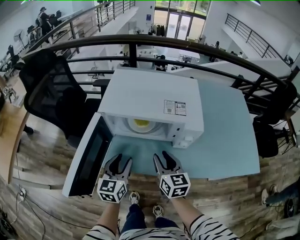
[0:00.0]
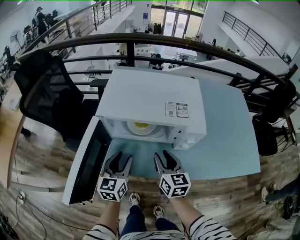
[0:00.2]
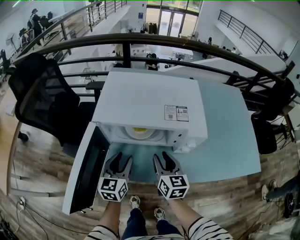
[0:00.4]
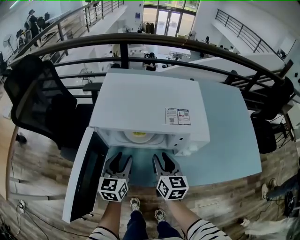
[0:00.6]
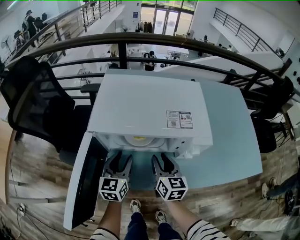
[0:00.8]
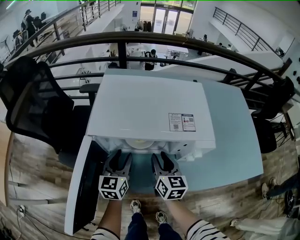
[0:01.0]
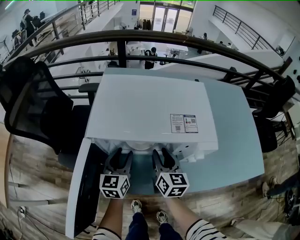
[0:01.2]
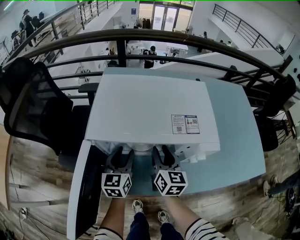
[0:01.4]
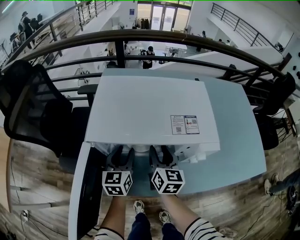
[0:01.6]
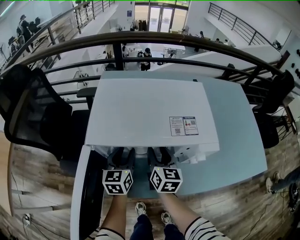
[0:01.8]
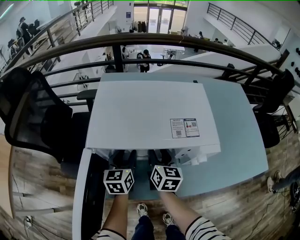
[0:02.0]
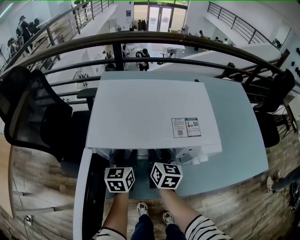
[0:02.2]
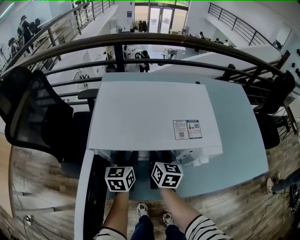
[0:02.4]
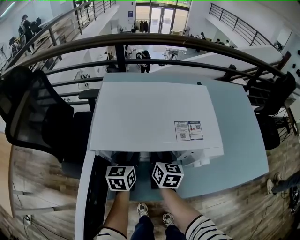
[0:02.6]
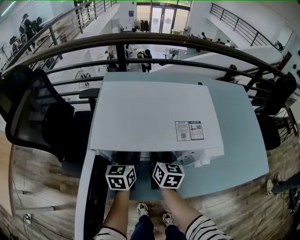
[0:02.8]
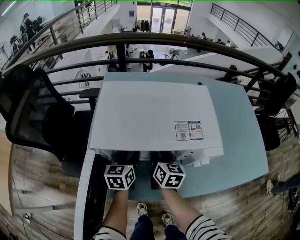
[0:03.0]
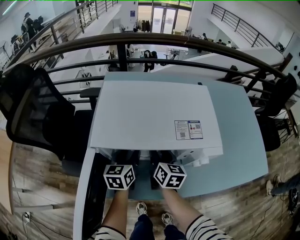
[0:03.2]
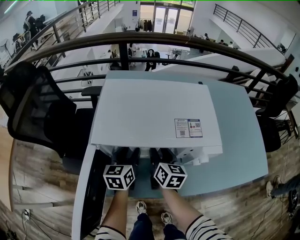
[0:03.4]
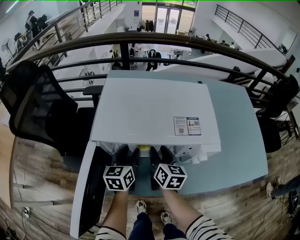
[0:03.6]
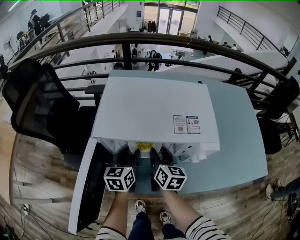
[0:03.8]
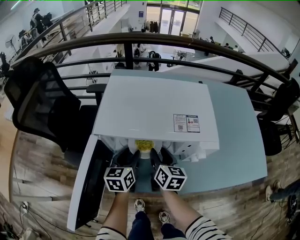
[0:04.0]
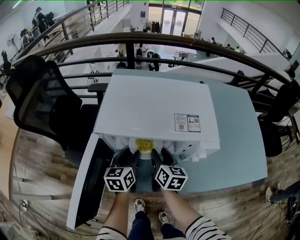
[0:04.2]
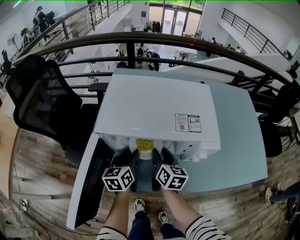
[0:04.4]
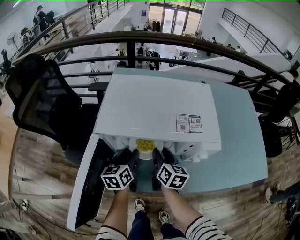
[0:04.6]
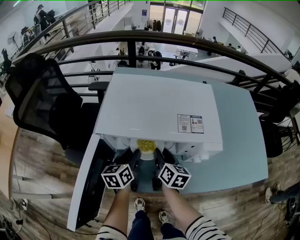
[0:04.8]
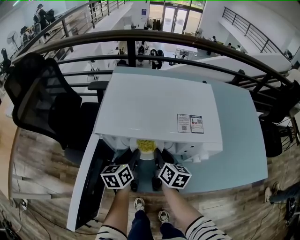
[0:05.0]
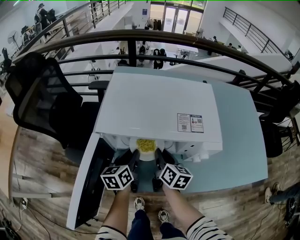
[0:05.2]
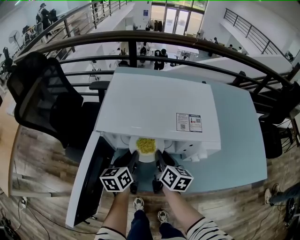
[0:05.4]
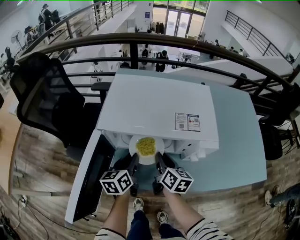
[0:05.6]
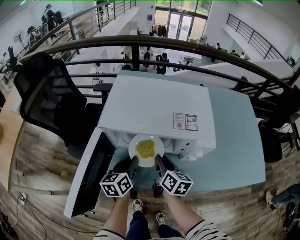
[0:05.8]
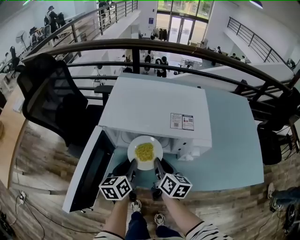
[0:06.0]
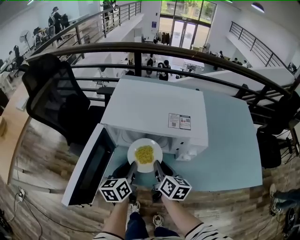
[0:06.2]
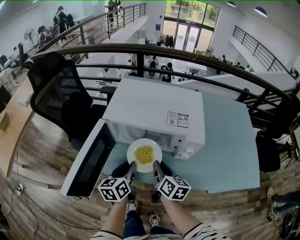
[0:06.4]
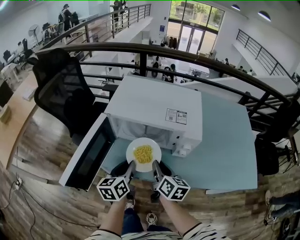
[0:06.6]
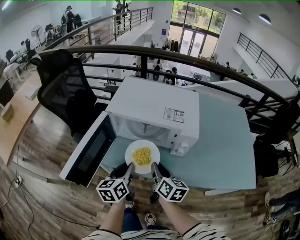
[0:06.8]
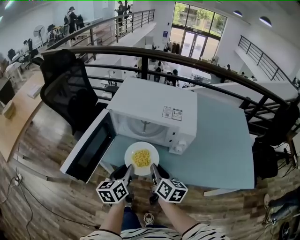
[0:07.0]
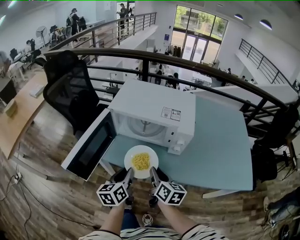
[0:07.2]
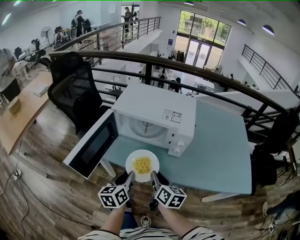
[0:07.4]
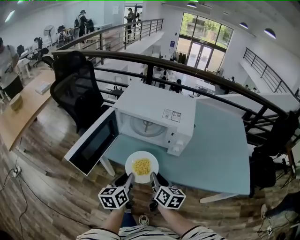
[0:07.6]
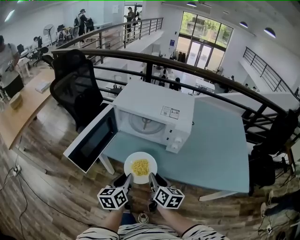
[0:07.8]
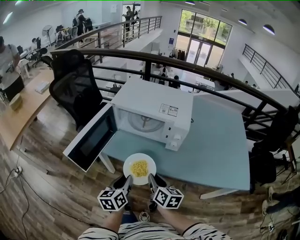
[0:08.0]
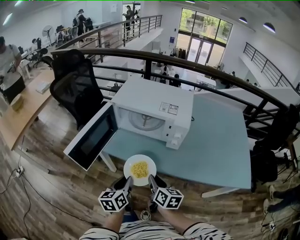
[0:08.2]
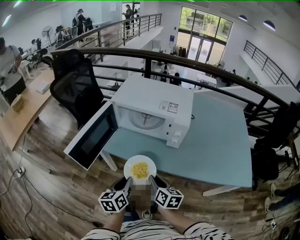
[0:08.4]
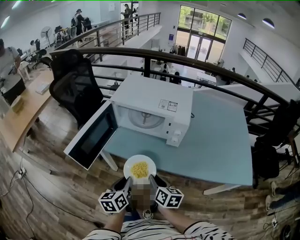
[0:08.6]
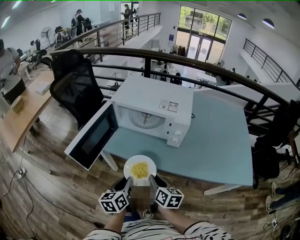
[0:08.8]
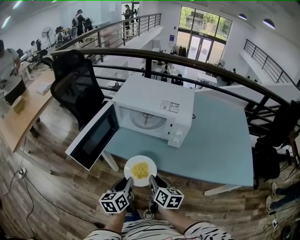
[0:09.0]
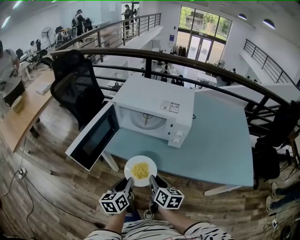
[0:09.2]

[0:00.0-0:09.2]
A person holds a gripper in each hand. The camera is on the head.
0:00.0 to 0:01.6: The two grippers go some 15 cm forward.
0:01.6 to 0:03.0: The grippers make only small movements.
0:03.0 to 0:04.6: The left gripper moves backward, some 5 cm.
0:04.6 to 0:06.2: The grippers both shift backward by about 10 cm. The right gripper closes up.
0:06.2 to 0:07.6: The grippers both shift backward by approximately 15 cm.
0:07.6 to 0:09.2: The left gripper moves backward, some 5 cm. The right gripper shifts by approximately 5 cm.

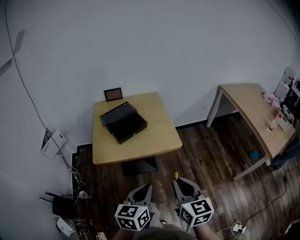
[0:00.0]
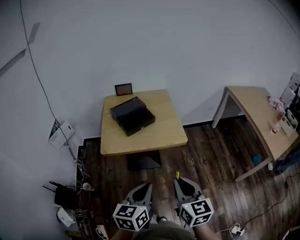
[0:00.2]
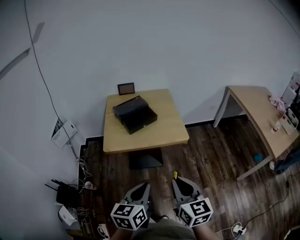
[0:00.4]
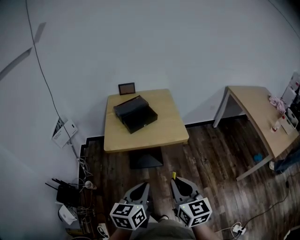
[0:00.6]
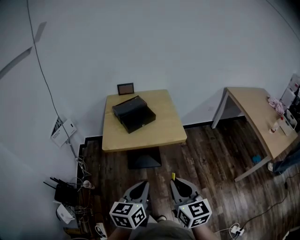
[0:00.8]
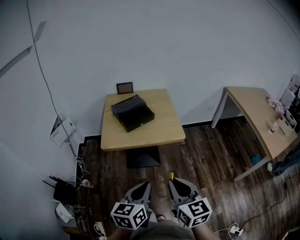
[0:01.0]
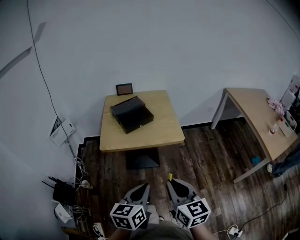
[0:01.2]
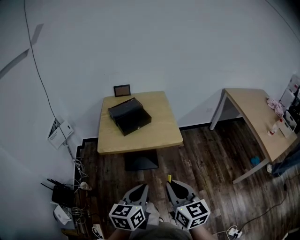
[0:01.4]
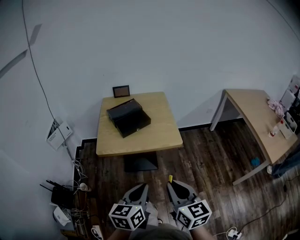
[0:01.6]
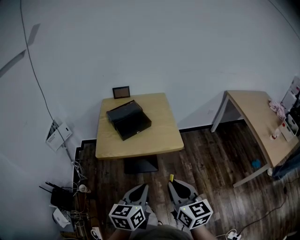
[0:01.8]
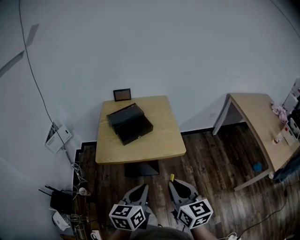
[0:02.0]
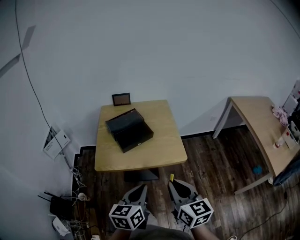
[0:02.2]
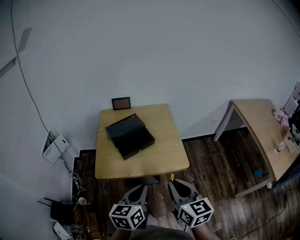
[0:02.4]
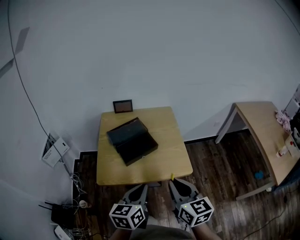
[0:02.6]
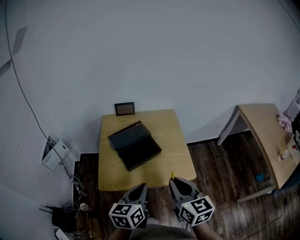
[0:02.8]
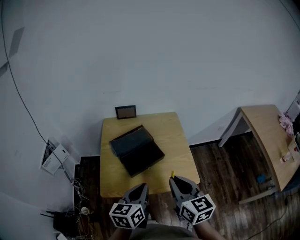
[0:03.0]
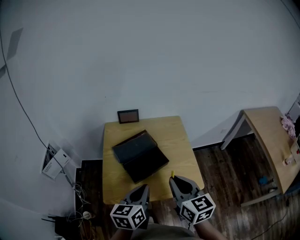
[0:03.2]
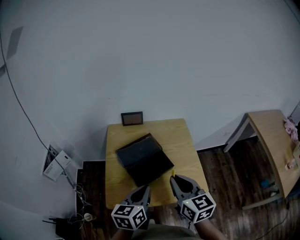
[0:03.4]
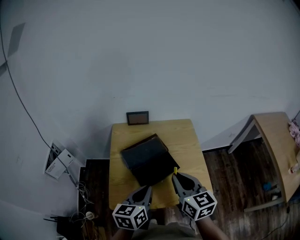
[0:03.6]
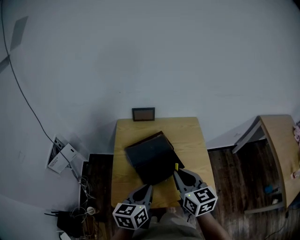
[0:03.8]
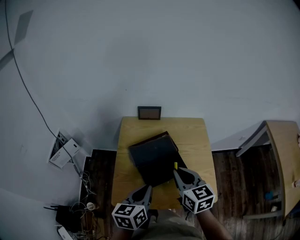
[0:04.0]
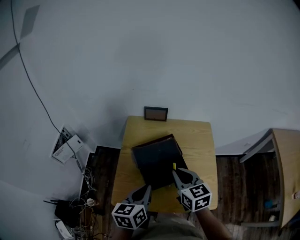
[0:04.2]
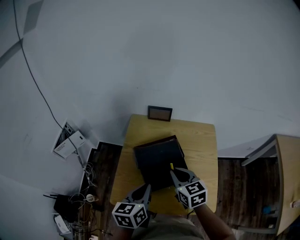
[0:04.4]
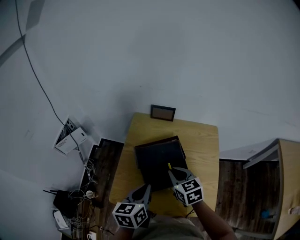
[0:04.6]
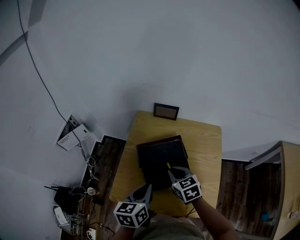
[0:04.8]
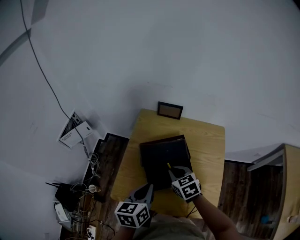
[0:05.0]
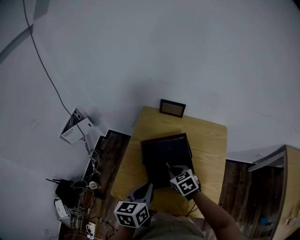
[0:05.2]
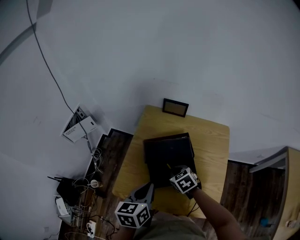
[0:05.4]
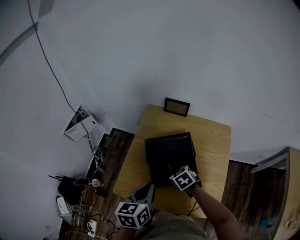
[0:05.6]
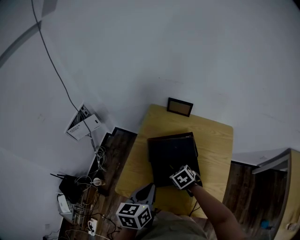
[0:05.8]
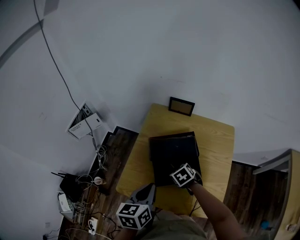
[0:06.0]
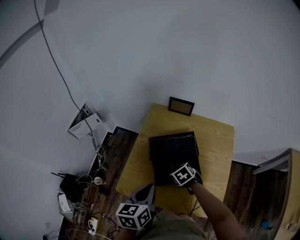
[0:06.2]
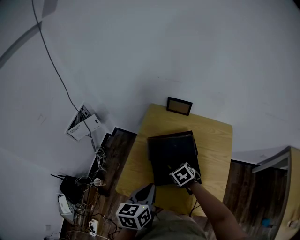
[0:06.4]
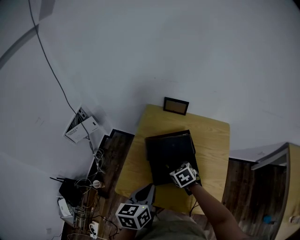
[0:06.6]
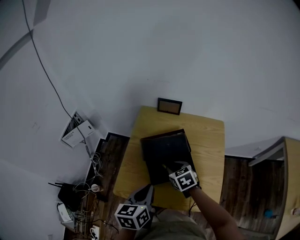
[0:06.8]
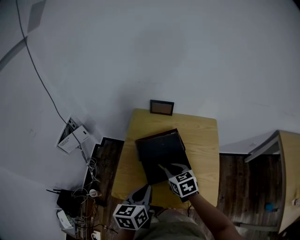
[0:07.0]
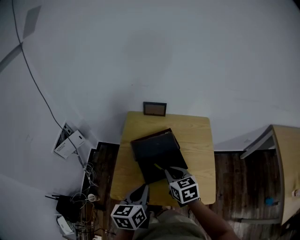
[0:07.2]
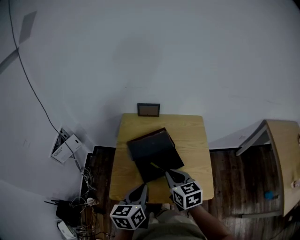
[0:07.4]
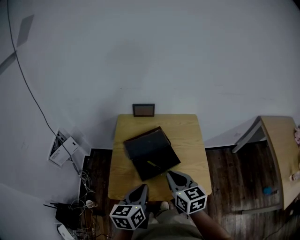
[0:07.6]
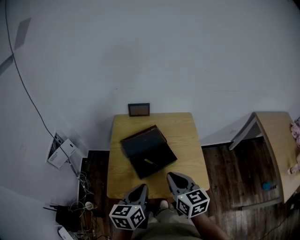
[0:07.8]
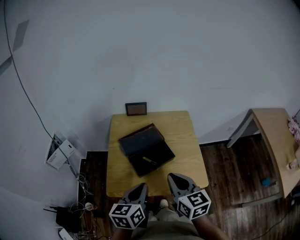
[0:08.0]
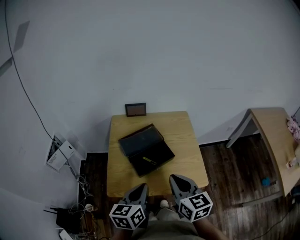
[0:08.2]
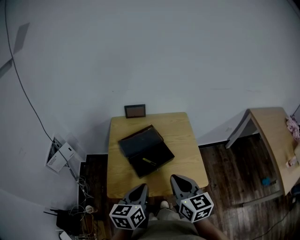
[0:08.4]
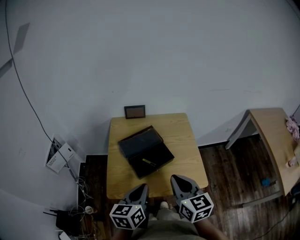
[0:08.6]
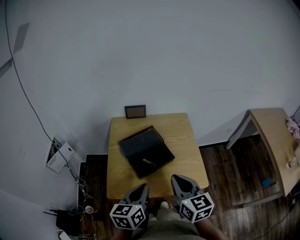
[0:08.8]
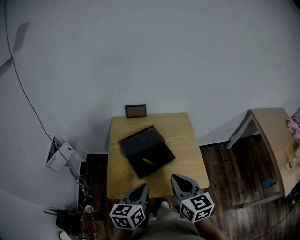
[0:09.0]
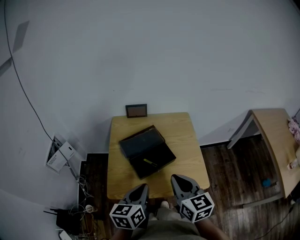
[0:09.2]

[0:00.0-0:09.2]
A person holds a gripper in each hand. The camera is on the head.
0:00.0 to 0:01.6: The right gripper goes roughly 5 cm backward.
0:01.6 to 0:03.0: Both grippers move forward, about 30 cm.
0:03.0 to 0:04.6: The left gripper goes some 15 cm forward and to the left, and changes its angle by about 20 degrees, while the right gripper shifts roughly 25 cm forward, downward and to the left, and rotates approximately 30 degrees.
0:04.6 to 0:06.2: The right gripper travels downward by some 15 cm, and tips its fingers downward by some 30 degrees.
0:06.2 to 0:07.6: The left gripper changes place by some 5 cm. The right gripper travels upward by roughly 20 cm, tips its fingers upward by some 40 degrees, and opens, then closes once more.
0:07.6 to 0:09.2: The right gripper is displaced backward by roughly 5 cm.

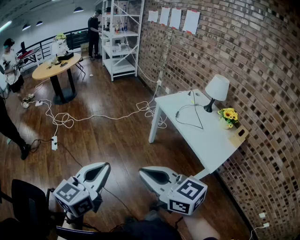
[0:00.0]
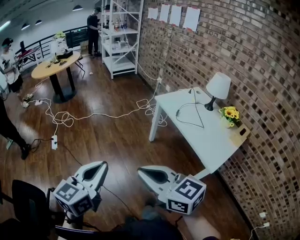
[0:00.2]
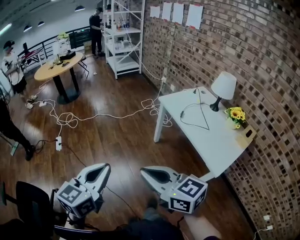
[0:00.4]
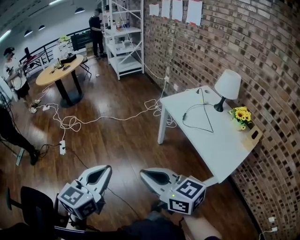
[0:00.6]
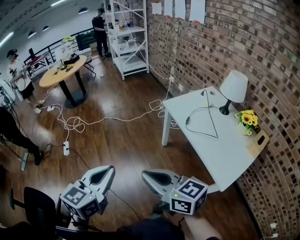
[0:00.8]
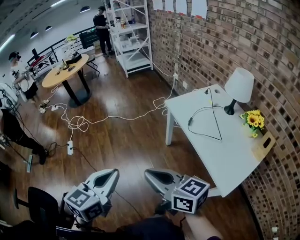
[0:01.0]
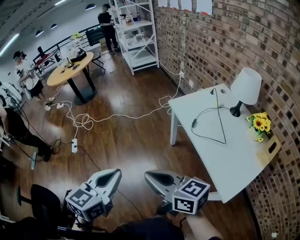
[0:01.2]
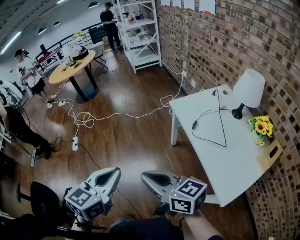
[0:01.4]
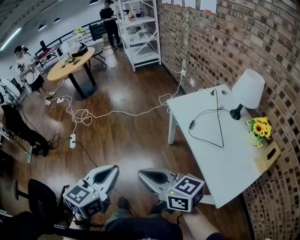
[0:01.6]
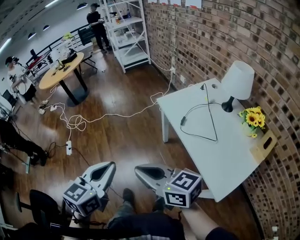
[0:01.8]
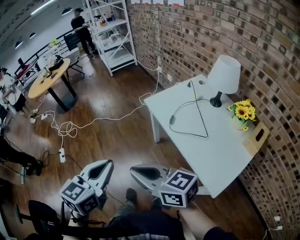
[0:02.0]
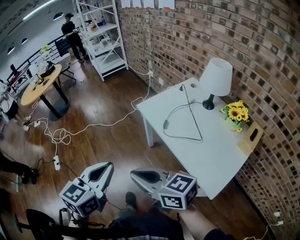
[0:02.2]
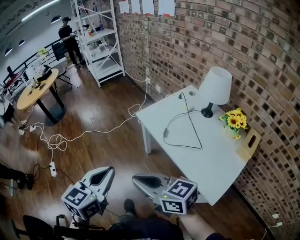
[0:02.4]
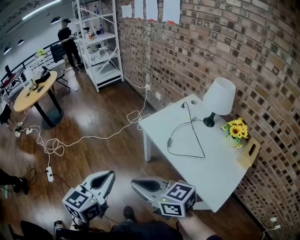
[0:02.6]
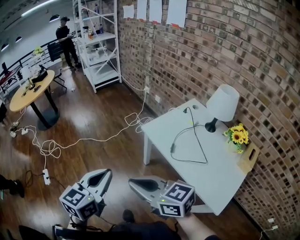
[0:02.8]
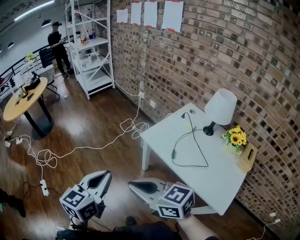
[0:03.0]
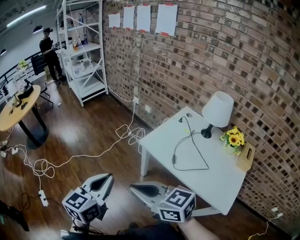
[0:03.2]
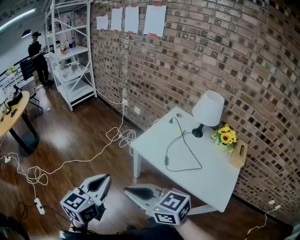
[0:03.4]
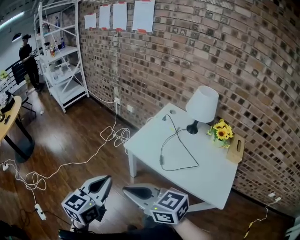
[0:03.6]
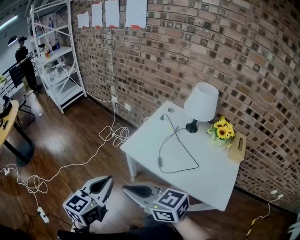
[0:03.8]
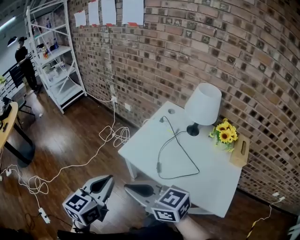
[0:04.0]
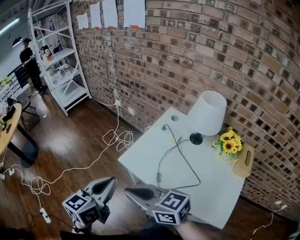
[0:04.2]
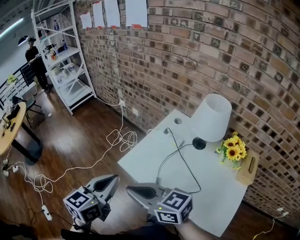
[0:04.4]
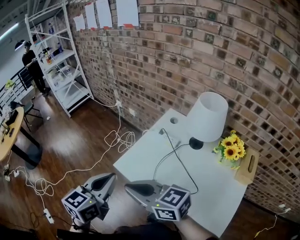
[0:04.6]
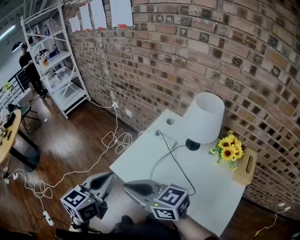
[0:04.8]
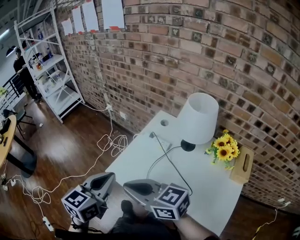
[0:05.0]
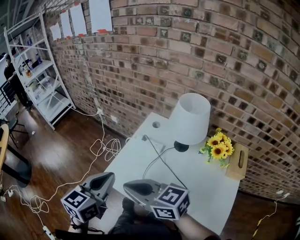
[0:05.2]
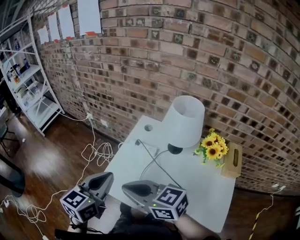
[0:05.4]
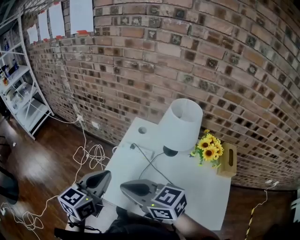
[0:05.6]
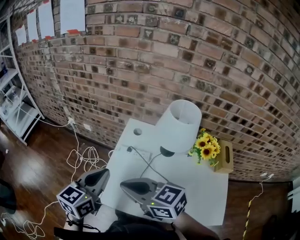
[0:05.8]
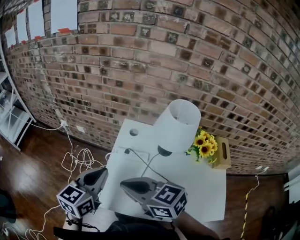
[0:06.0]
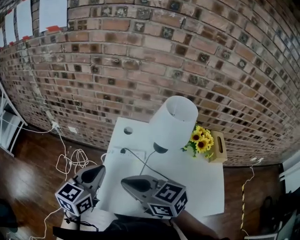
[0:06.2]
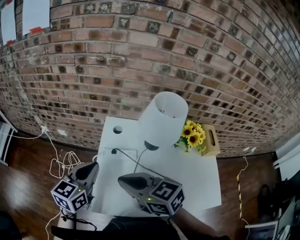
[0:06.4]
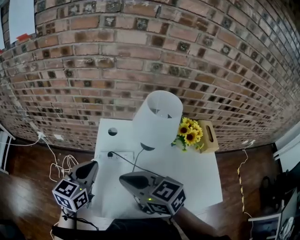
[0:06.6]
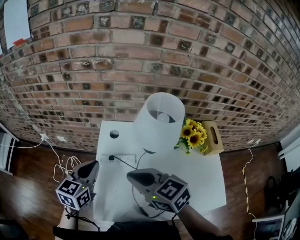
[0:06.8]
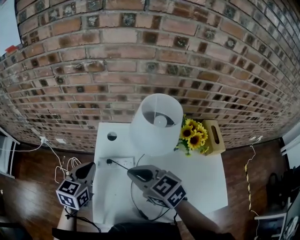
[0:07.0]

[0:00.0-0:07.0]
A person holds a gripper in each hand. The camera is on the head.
0:00.0 to 0:01.4: Both grippers travel together forward and to the right, about 20 cm. The right gripper changes its angle by roughly 20 degrees.
0:01.4 to 0:02.8: Both grippers move forward, some 15 cm.
0:02.8 to 0:04.2: Both grippers travel together forward and to the right, roughly 20 cm. The left gripper turns by some 20 degrees.
0:04.2 to 0:05.6: The grippers both shift forward and to the right by about 20 cm.
0:05.6 to 0:07.0: The right gripper travels forward and to the right by some 20 cm, and changes its angle by approximately 30 degrees. Meanwhile the left gripper is displaced forward and downward by approximately 20 cm.
